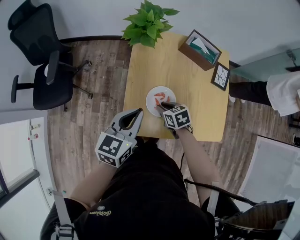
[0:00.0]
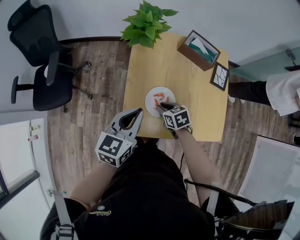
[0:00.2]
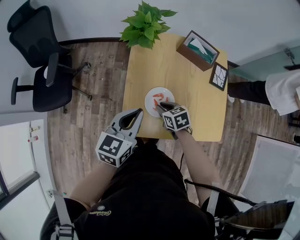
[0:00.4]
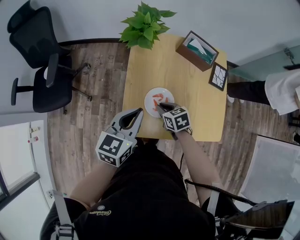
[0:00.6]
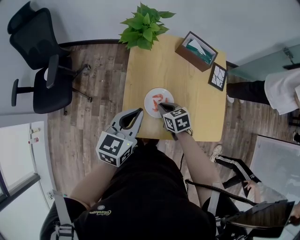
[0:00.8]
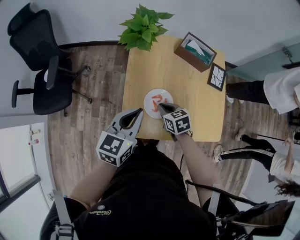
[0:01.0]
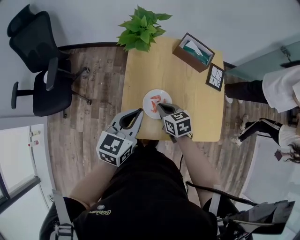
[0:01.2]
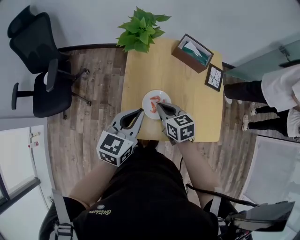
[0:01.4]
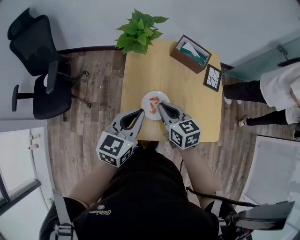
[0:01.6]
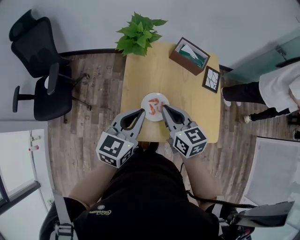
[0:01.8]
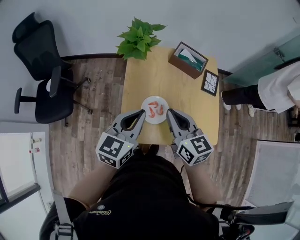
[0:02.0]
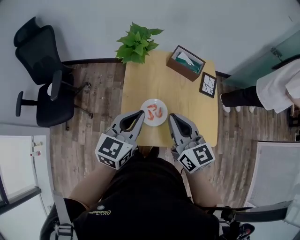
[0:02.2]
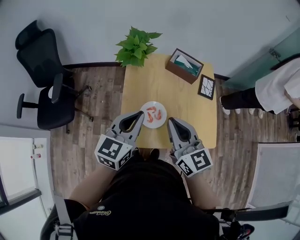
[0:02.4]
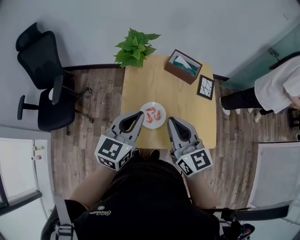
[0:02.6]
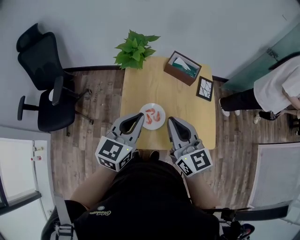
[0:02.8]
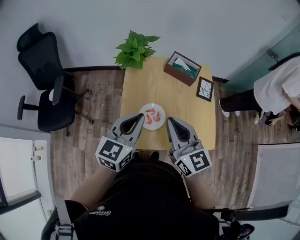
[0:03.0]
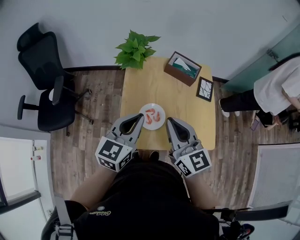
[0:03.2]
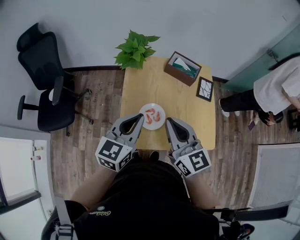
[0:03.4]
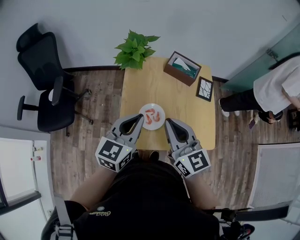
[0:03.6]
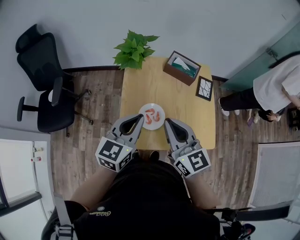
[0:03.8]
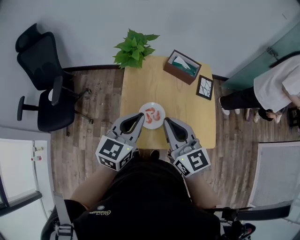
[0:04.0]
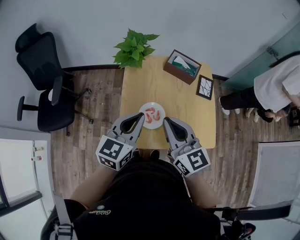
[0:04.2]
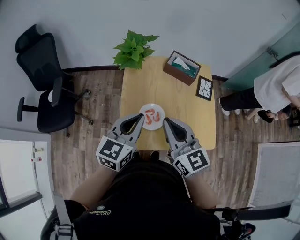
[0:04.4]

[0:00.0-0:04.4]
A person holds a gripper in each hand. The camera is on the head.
0:00.0 to 0:01.4: The right gripper moves upward, approximately 10 cm.
0:01.4 to 0:03.0: The left gripper heads upward, covering some 5 cm, while the right gripper heads upward, covering roughly 20 cm, and tips its fingers upward by approximately 30 degrees.
0:03.0 to 0:04.4: Both grippers stay about where they are.

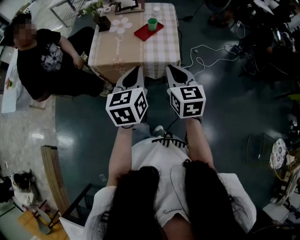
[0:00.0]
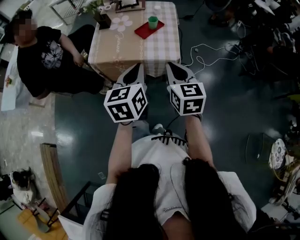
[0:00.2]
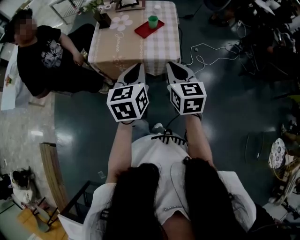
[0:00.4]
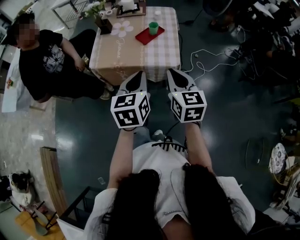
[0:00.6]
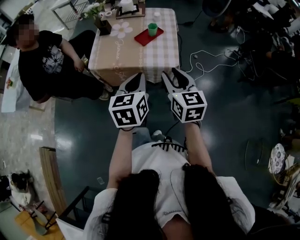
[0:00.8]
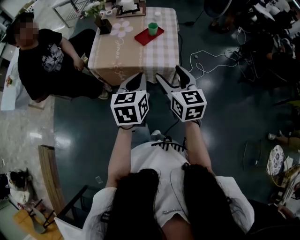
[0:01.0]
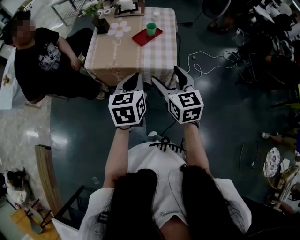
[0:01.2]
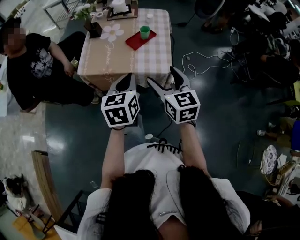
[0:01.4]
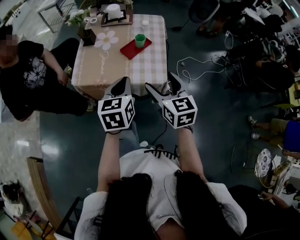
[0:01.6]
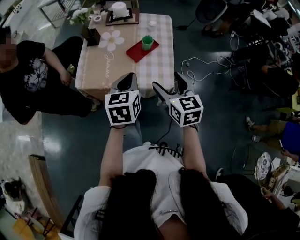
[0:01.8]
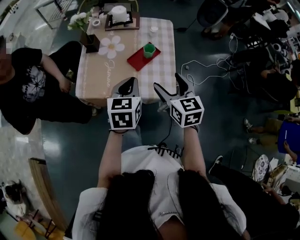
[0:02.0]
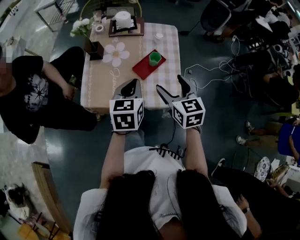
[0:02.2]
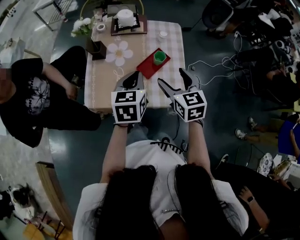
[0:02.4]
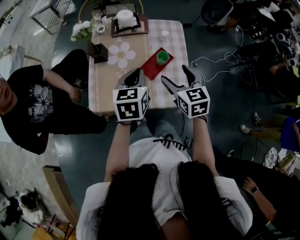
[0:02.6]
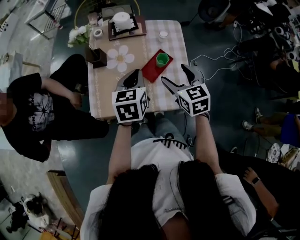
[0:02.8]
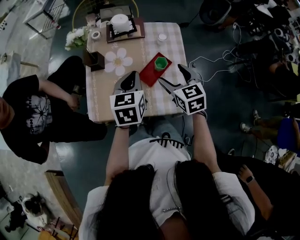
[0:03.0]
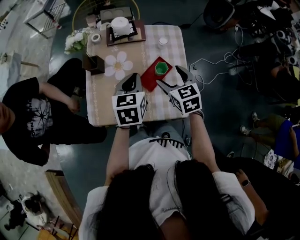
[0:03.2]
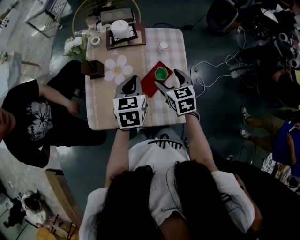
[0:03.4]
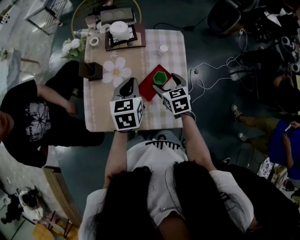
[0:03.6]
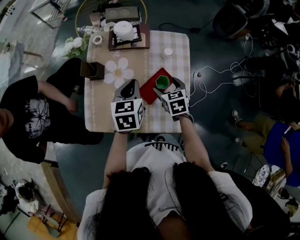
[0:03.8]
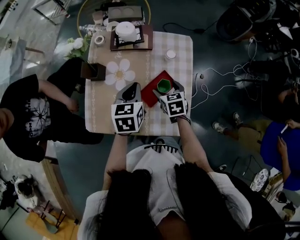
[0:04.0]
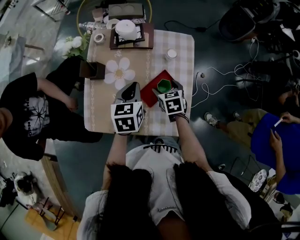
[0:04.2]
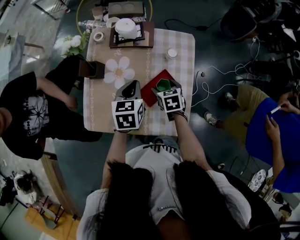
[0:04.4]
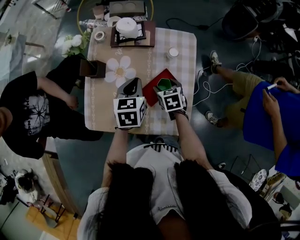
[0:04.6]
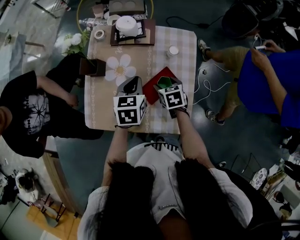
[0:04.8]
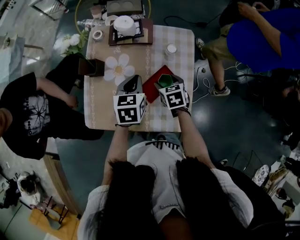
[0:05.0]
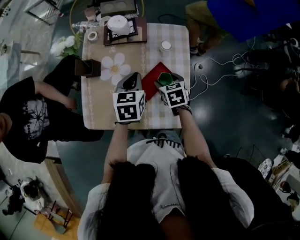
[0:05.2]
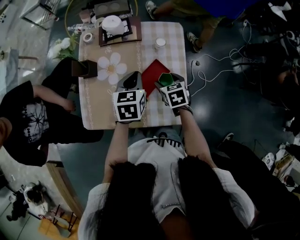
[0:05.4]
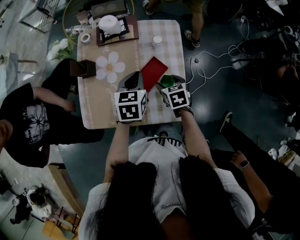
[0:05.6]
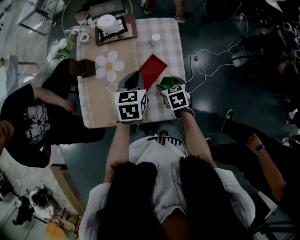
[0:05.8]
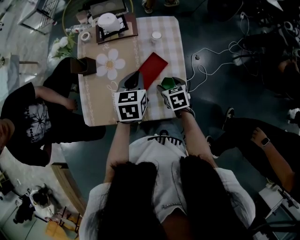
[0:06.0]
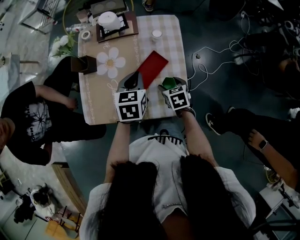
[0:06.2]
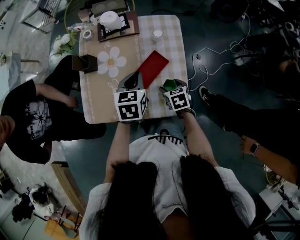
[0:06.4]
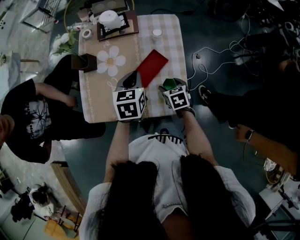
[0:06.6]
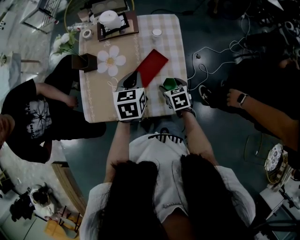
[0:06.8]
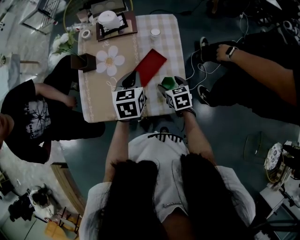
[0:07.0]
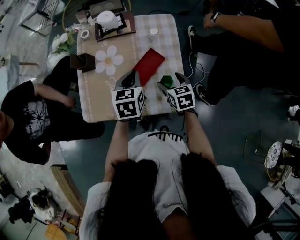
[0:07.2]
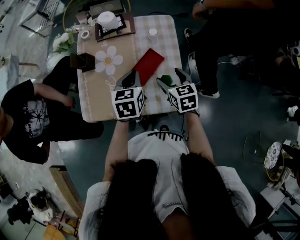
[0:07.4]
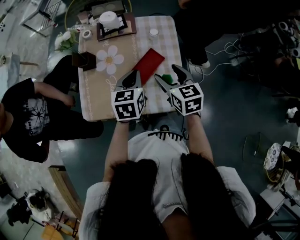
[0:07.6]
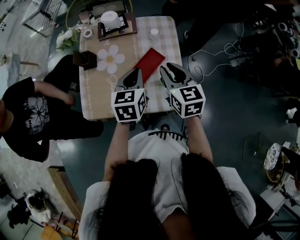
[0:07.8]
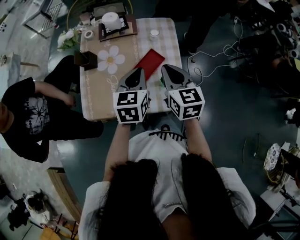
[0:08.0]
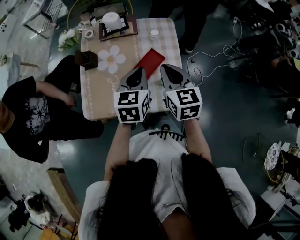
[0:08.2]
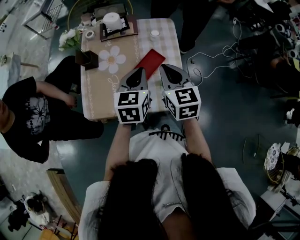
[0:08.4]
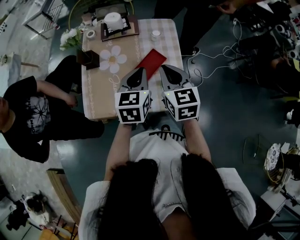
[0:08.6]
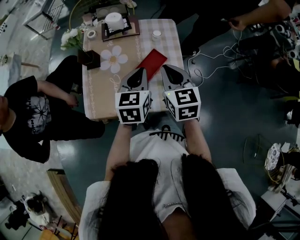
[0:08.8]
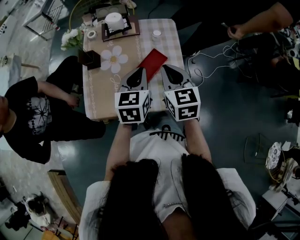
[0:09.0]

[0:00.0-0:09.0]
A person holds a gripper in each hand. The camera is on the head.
0:00.0 to 0:01.6: Both grippers travel together forward, about 10 cm. The right gripper opens.
0:01.6 to 0:03.0: The two grippers go roughly 25 cm forward.
0:03.0 to 0:04.4: The left gripper heads forward and downward, covering approximately 10 cm. The right gripper moves downward and forward, about 20 cm, and turns by roughly 20 degrees.
0:04.4 to 0:06.0: The right gripper goes approximately 10 cm backward. Meanwhile the left gripper travels to the right by some 5 cm.
0:06.0 to 0:07.6: The right gripper travels upward by about 15 cm, and changes its angle by approximately 20 degrees.
0:07.6 to 0:09.0: Both grippers travel together upward, some 5 cm. The right gripper closes up.

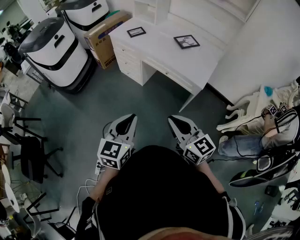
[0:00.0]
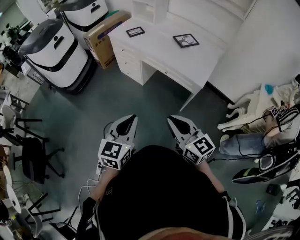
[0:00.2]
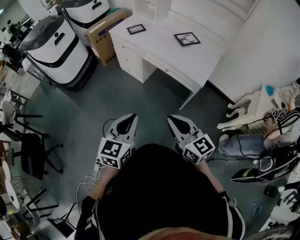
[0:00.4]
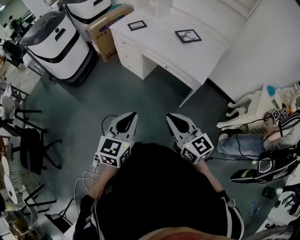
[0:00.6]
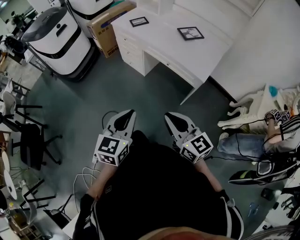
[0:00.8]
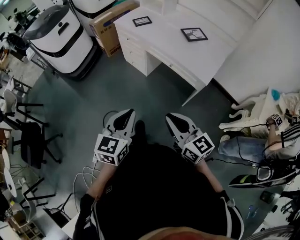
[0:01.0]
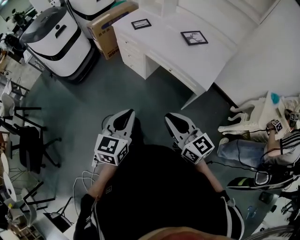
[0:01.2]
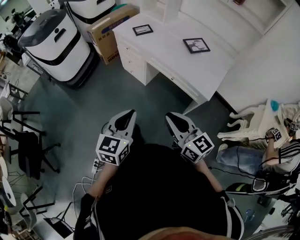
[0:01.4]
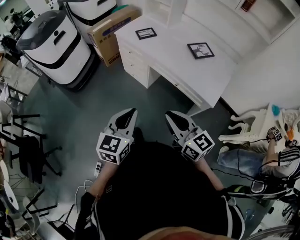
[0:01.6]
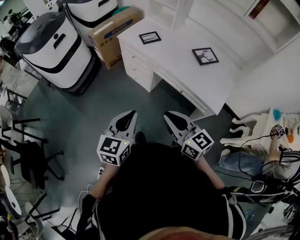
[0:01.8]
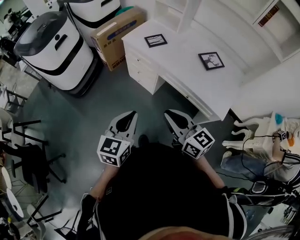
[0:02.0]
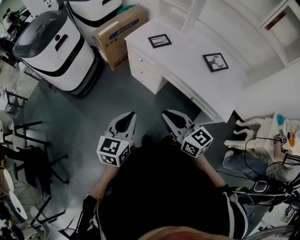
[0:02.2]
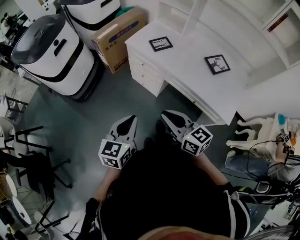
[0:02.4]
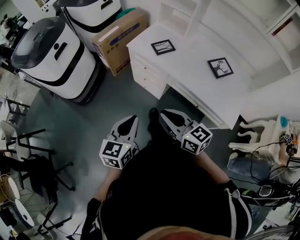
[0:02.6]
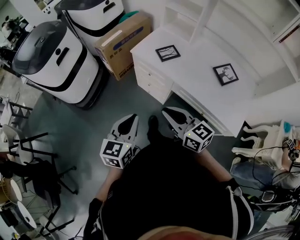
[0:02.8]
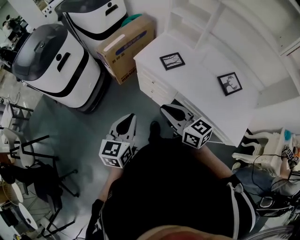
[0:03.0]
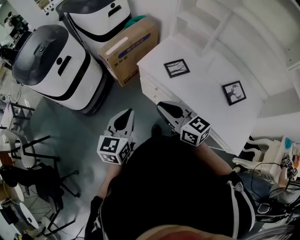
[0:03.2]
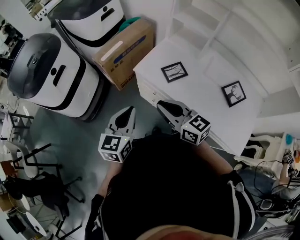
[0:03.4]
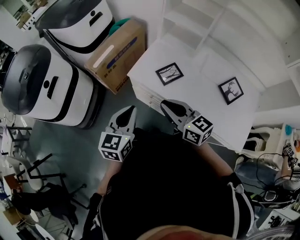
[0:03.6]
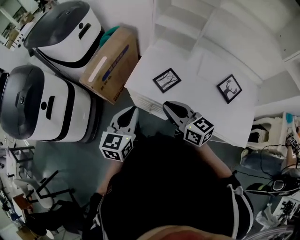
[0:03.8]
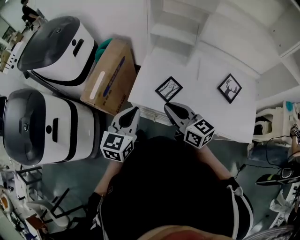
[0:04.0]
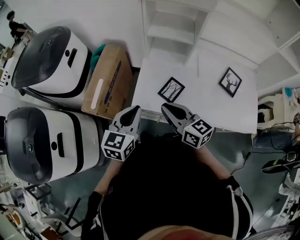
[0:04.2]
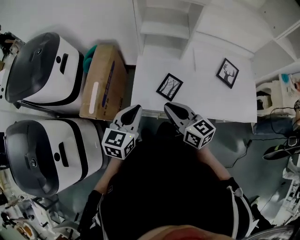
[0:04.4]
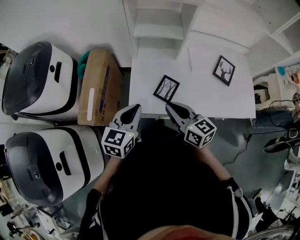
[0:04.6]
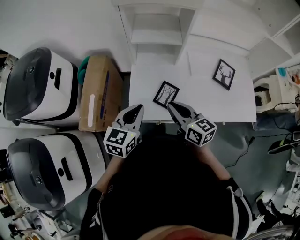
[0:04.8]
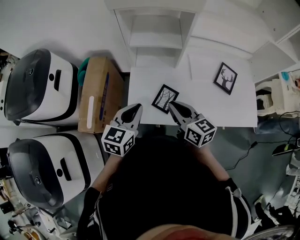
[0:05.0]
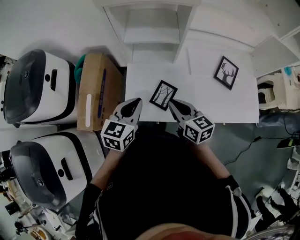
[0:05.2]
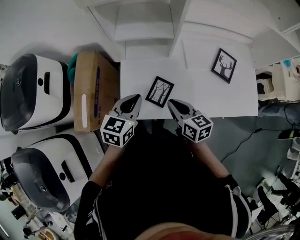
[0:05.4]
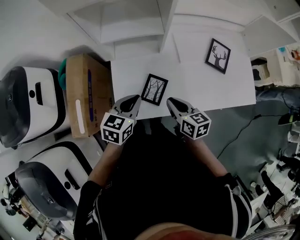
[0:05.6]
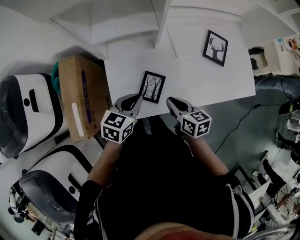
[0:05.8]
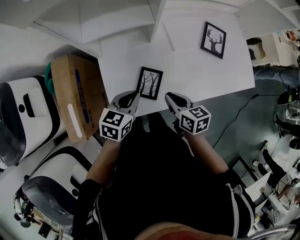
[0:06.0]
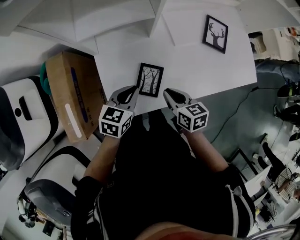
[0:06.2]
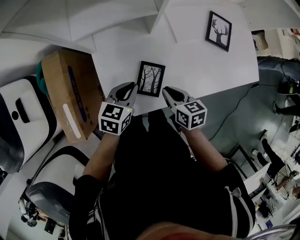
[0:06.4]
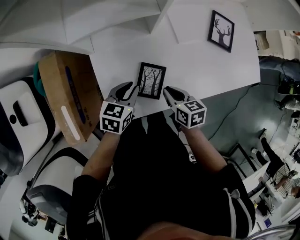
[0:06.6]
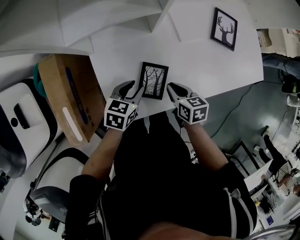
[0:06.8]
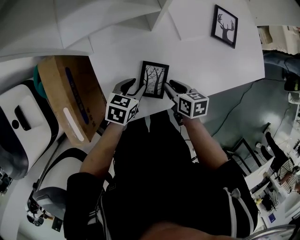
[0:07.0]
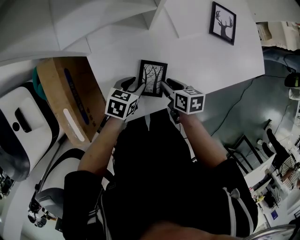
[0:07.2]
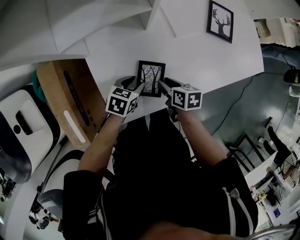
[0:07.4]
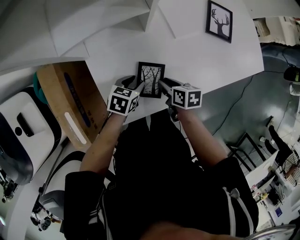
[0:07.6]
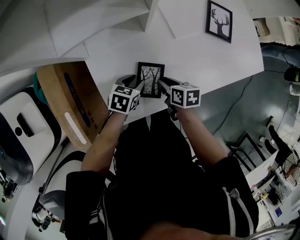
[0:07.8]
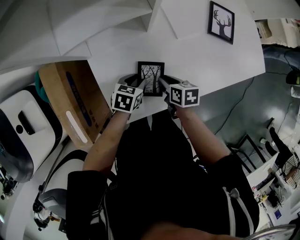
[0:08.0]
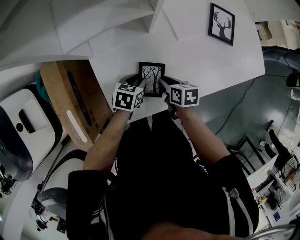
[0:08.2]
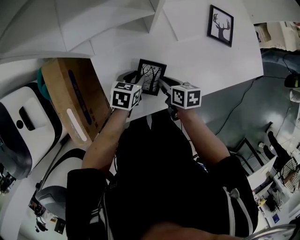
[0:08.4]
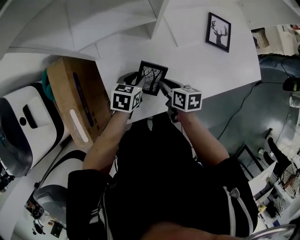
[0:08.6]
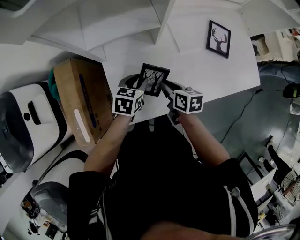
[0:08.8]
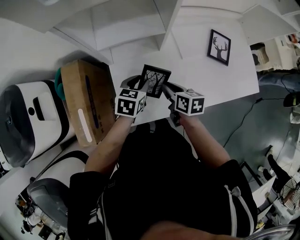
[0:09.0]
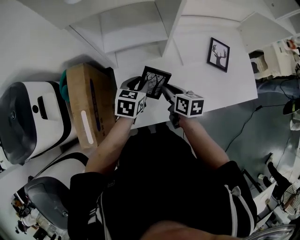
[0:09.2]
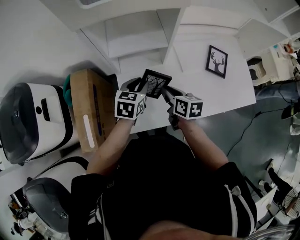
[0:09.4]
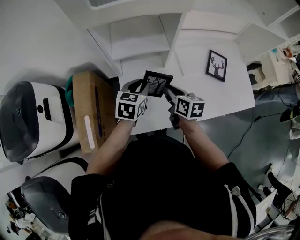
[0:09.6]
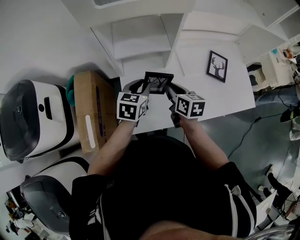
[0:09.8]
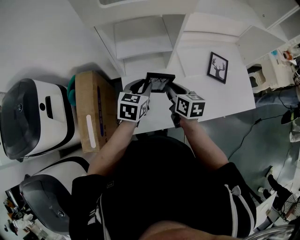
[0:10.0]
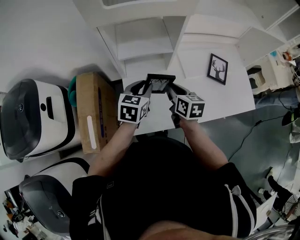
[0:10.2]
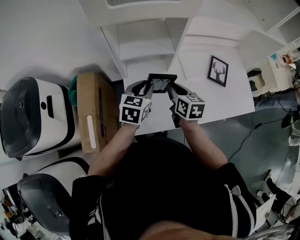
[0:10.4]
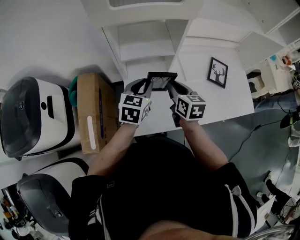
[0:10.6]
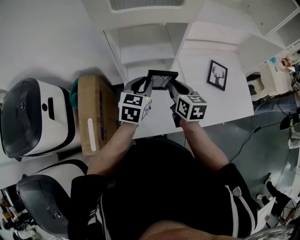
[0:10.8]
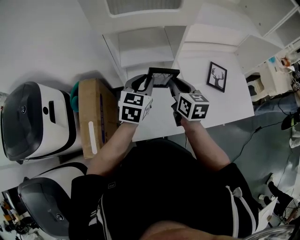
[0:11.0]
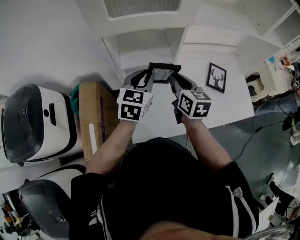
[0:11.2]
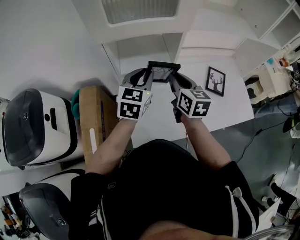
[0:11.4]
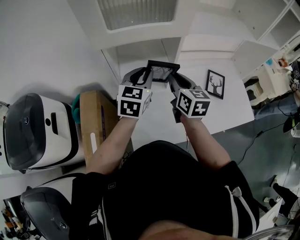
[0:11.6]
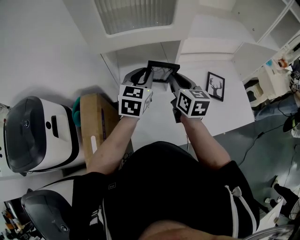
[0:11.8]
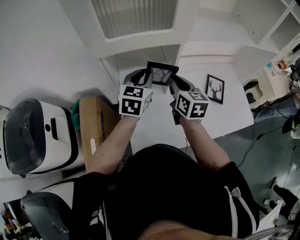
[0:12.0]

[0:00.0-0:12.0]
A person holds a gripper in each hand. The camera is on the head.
0:00.0 to 0:01.6: The grippers both shift forward by about 15 cm.
0:01.6 to 0:03.0: The grippers both shift forward and to the left by about 35 cm.
0:03.0 to 0:04.4: The right gripper shifts by about 30 cm, and swivels roughly 40 degrees, while the left gripper ends up about 35 cm from where it was, and swivels roughly 40 degrees.
0:04.4 to 0:06.0: The left gripper changes place by about 20 cm, and swivels approximately 30 degrees. Meanwhile the right gripper goes roughly 15 cm downward, and changes its angle by about 40 degrees.
0:06.0 to 0:07.6: The grippers both shift downward by about 15 cm. The left gripper swivels about 20 degrees, and opens its fingers; the right gripper turns by approximately 20 degrees, and opens.
0:07.6 to 0:09.0: The two grippers go some 15 cm upward. The left gripper changes its angle by roughly 20 degrees.
0:09.0 to 0:10.4: The grippers both shift upward by approximately 10 cm.
0:10.4 to 0:12.0: The right gripper shifts about 15 cm upward and forward. The left gripper goes approximately 15 cm forward and upward.
